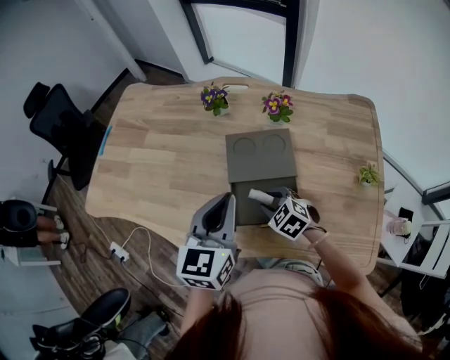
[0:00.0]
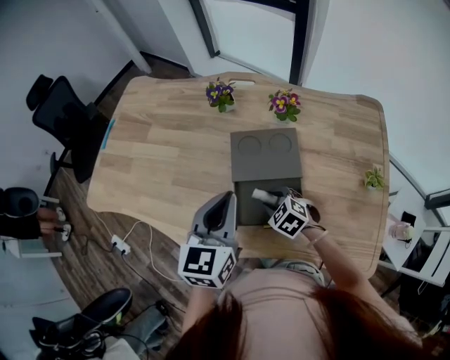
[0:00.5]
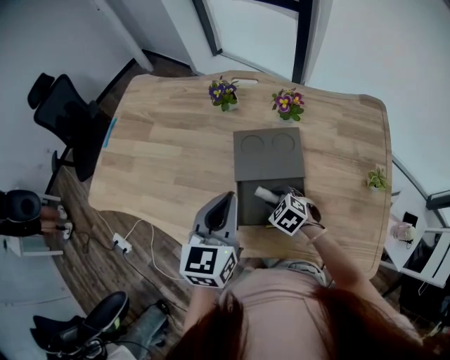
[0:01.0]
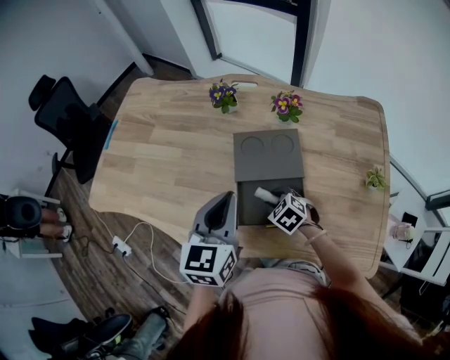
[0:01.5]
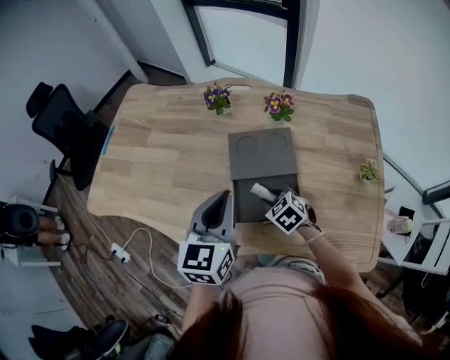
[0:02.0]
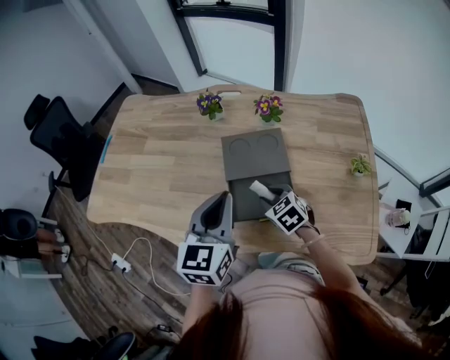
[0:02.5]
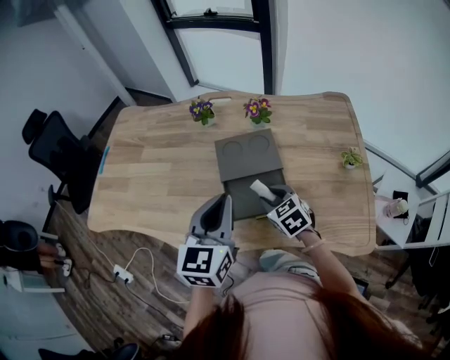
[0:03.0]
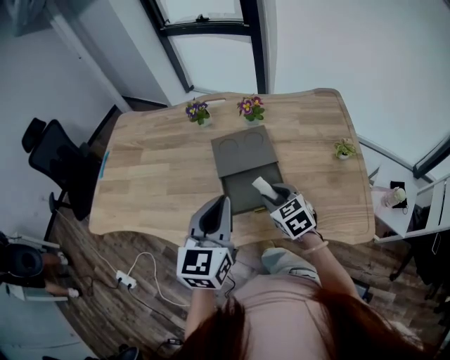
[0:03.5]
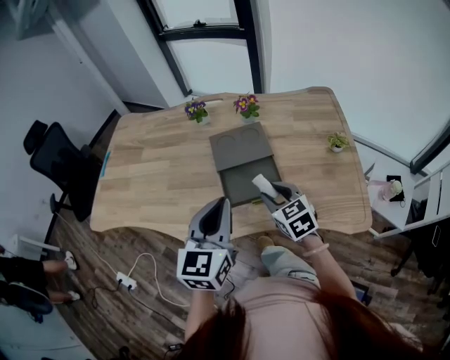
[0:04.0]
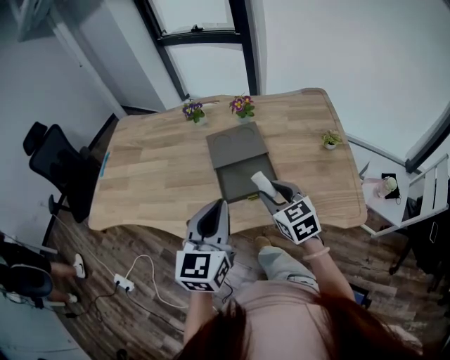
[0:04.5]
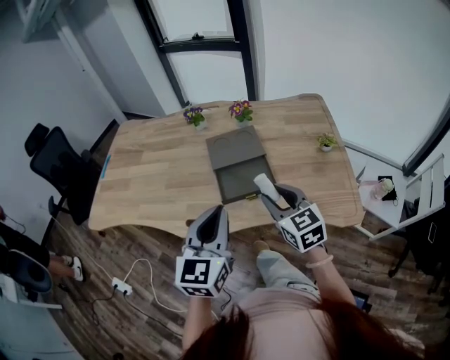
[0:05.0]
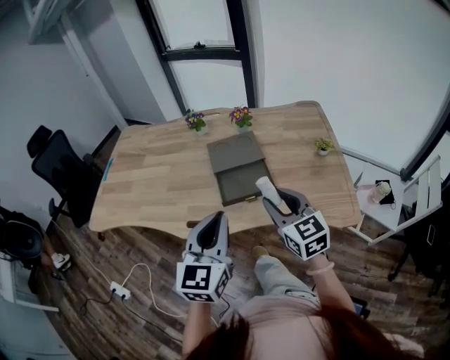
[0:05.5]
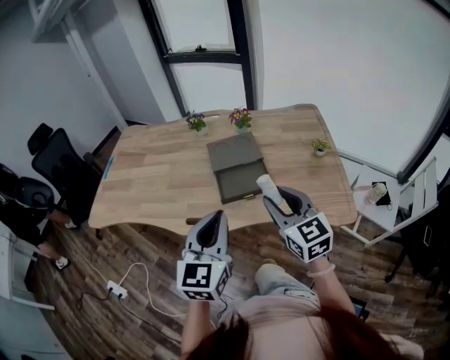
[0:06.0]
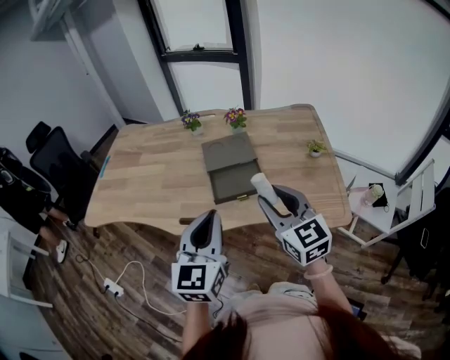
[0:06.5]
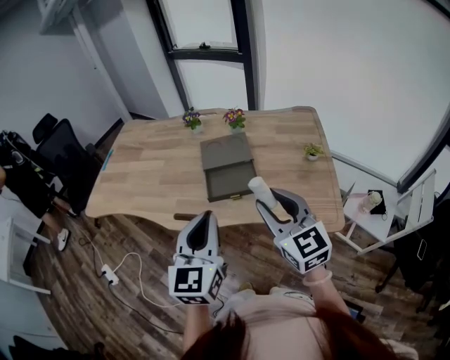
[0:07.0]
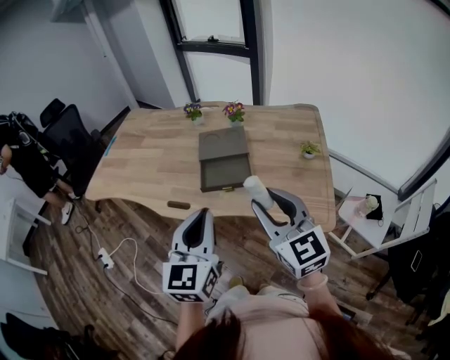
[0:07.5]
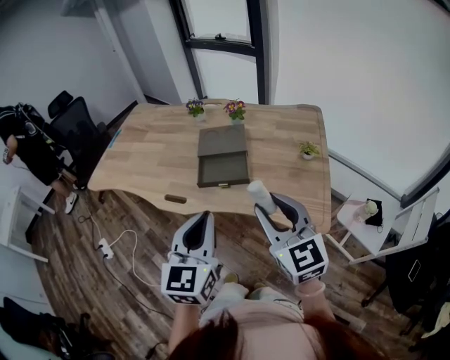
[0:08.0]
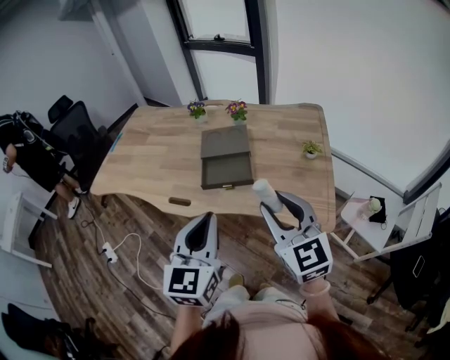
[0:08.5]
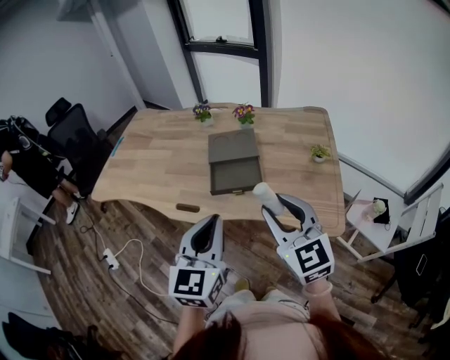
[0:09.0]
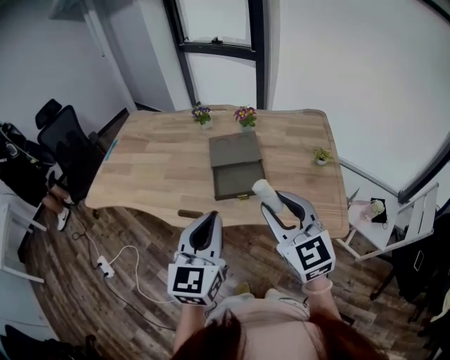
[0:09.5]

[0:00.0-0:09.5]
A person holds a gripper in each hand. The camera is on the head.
0:00.0 to 0:02.0: The grippers make only small movements.
0:02.0 to 0:04.0: The left gripper is displaced backward by about 15 cm. The right gripper travels upward and backward by roughly 15 cm, and turns by approximately 30 degrees.
0:04.0 to 0:05.5: The right gripper shifts roughly 15 cm upward and backward, while the left gripper heads backward, covering roughly 10 cm.
0:05.5 to 0:07.5: The right gripper is displaced upward, backward and to the right by about 15 cm, while the left gripper moves to the right and backward, about 10 cm.
0:07.5 to 0:09.5: Both grippers move to the left, some 5 cm.

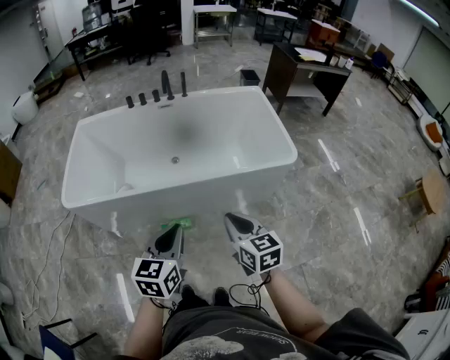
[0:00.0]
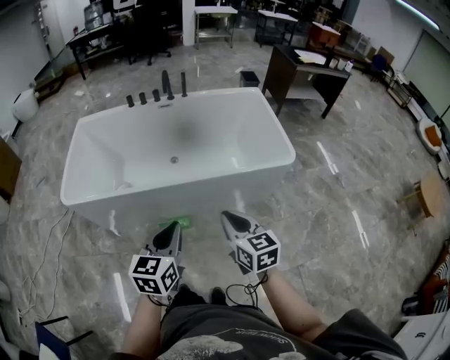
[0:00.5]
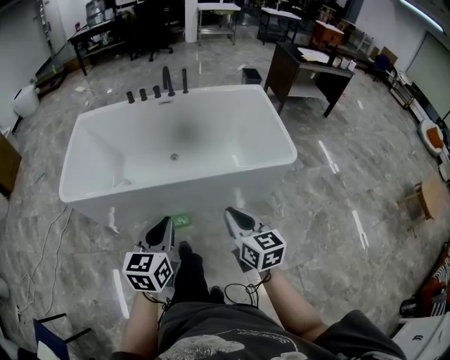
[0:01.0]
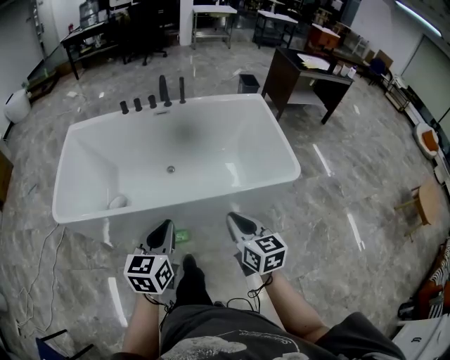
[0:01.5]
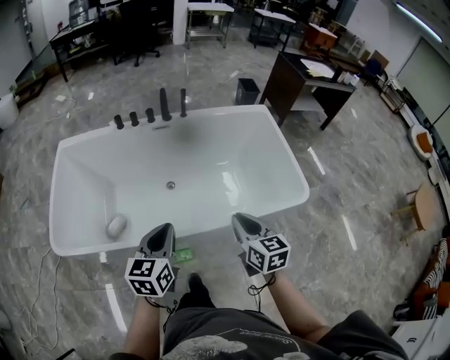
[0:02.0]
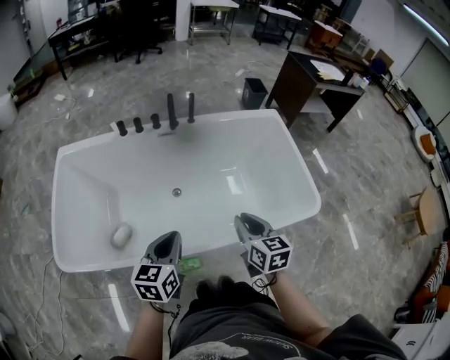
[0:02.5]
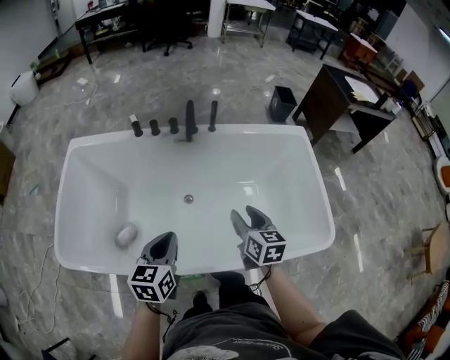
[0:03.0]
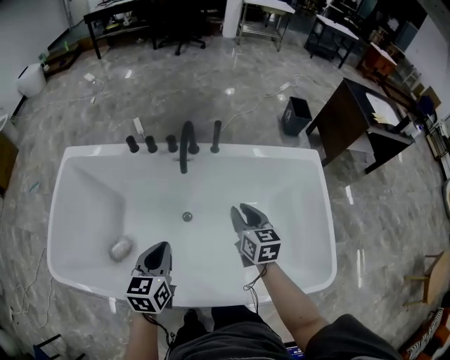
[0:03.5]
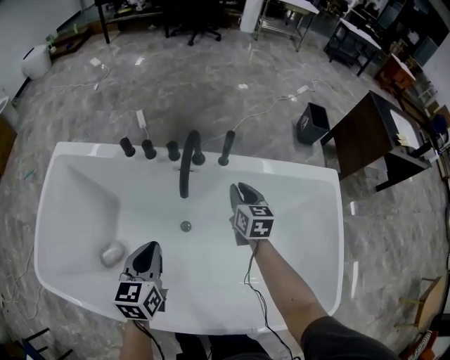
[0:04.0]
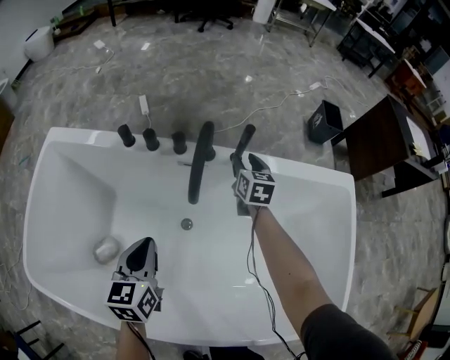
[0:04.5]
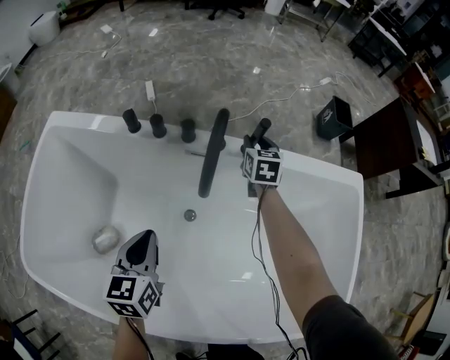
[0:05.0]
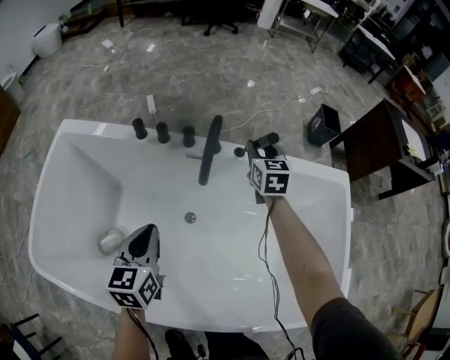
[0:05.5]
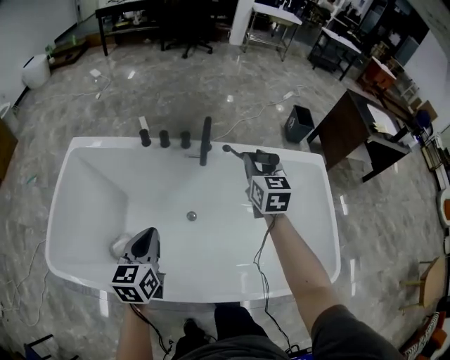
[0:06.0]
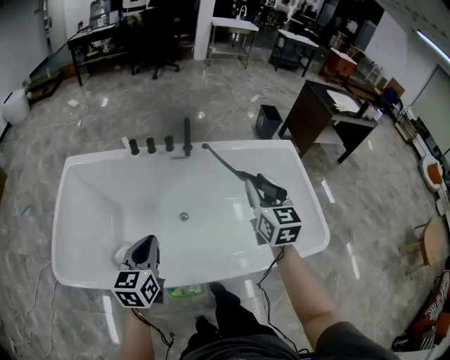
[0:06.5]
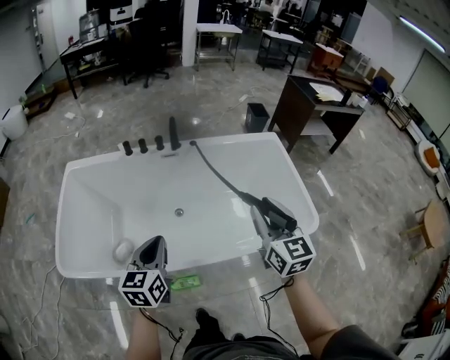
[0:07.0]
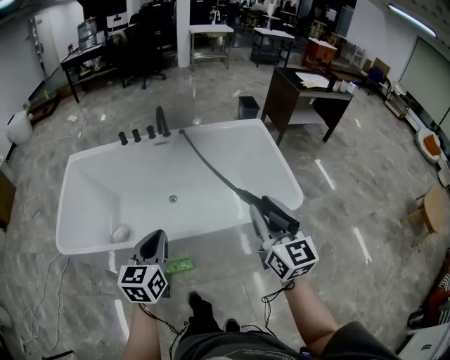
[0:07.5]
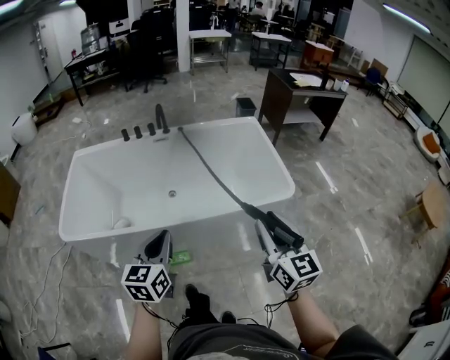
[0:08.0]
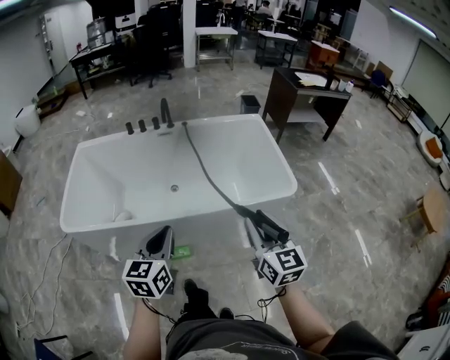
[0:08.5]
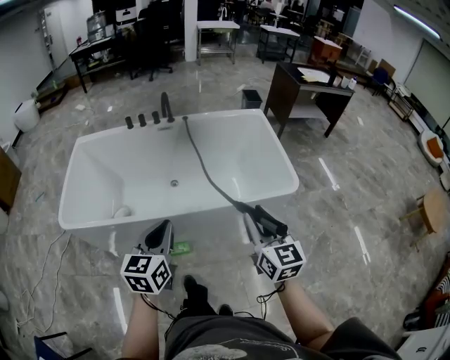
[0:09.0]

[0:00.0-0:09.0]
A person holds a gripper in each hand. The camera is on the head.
0:00.0 to 0:02.0: Both grippers travel together forward, roughly 30 cm.
0:02.0 to 0:04.5: The pair of grippers is taken forward, roughly 60 cm. The left gripper travels downward by roughly 20 cm, and changes its angle by about 30 degrees. Meanwhile the right gripper opens its fingers.
0:04.5 to 0:07.0: The right gripper heads backward and upward, covering roughly 80 cm, and changes its angle by approximately 30 degrees. Meanwhile the left gripper goes approximately 40 cm backward and upward, and changes its angle by roughly 20 degrees.
0:07.0 to 0:09.0: The right gripper travels backward by about 30 cm. Meanwhile the left gripper is displaced backward and to the right by about 30 cm.

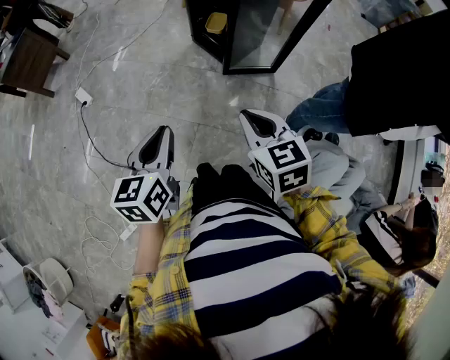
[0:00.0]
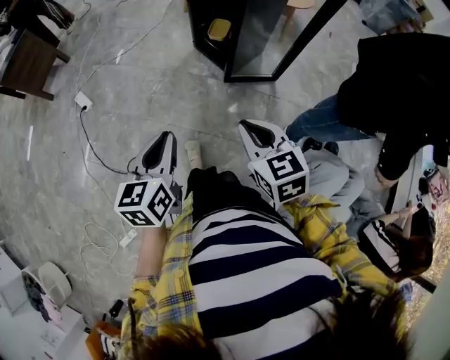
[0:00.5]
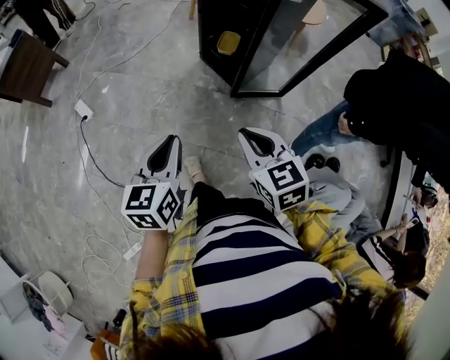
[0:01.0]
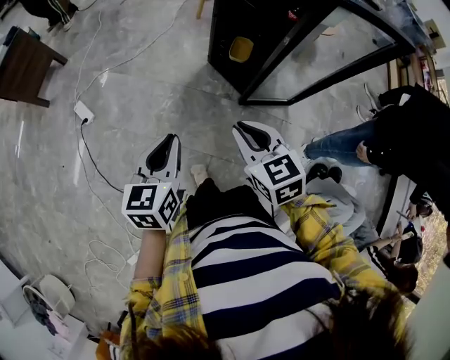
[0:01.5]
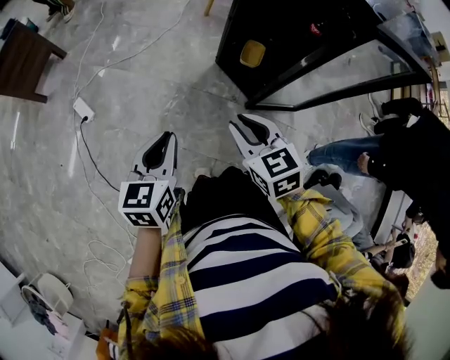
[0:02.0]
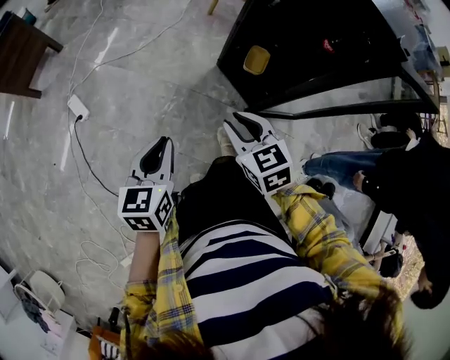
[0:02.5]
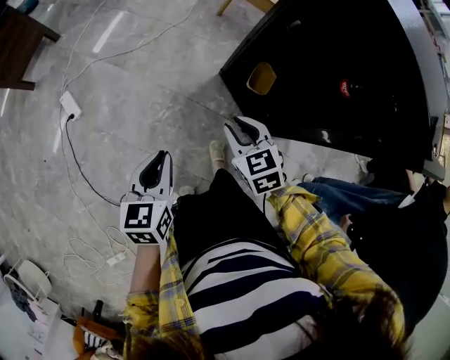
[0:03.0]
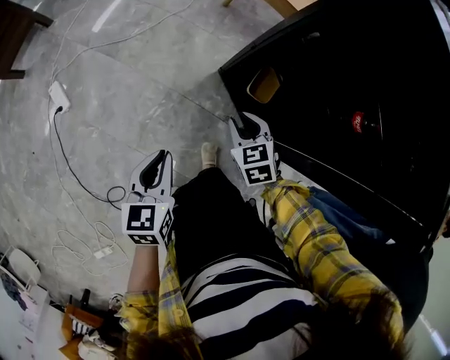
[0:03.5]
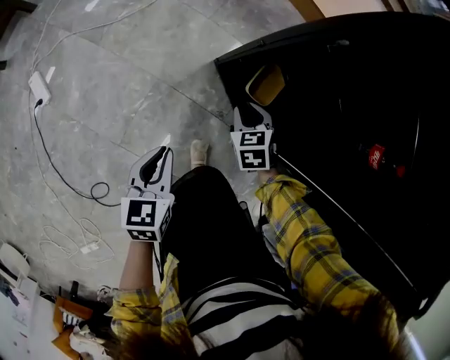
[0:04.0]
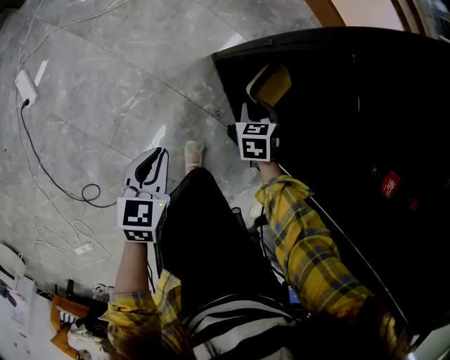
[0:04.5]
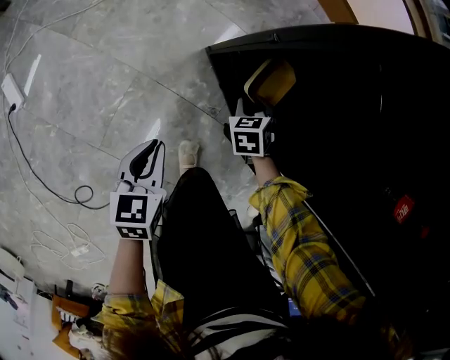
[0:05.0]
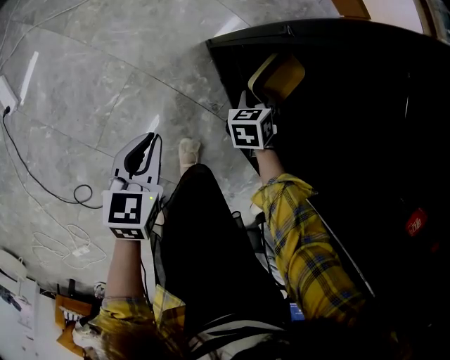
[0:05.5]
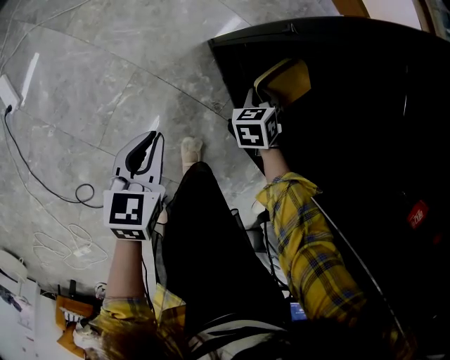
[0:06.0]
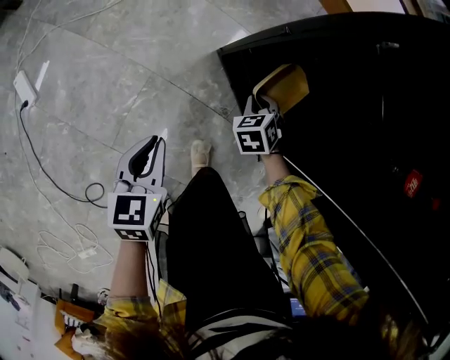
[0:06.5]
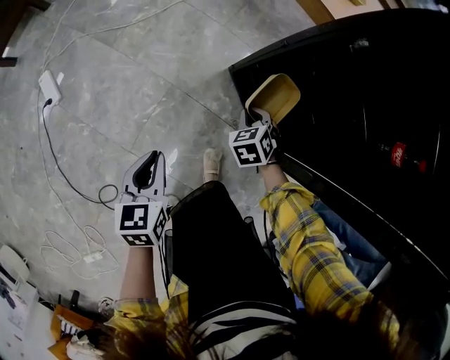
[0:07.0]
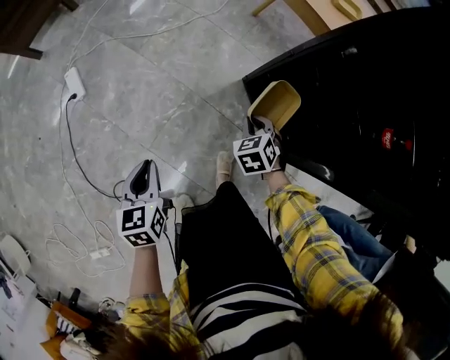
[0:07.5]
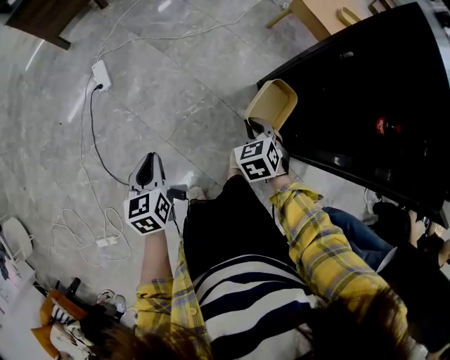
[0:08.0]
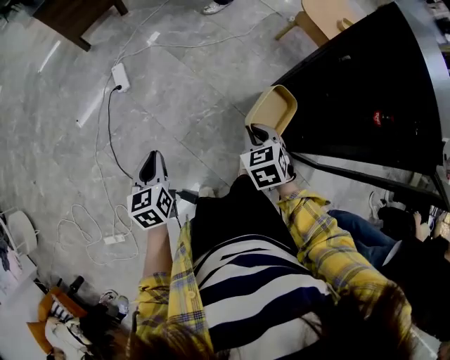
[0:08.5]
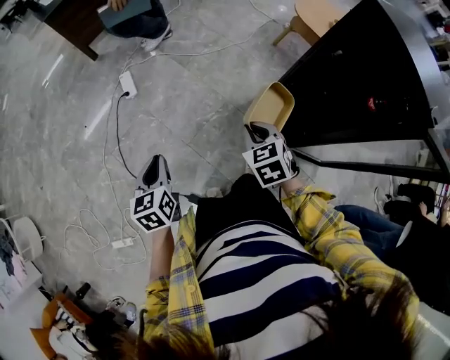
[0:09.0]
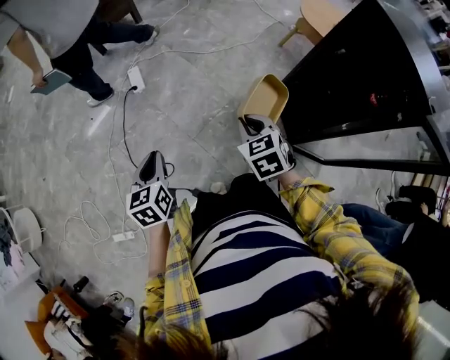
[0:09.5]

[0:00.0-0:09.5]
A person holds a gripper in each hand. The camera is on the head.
0:00.0 to 0:02.0: The two grippers go some 30 cm forward and to the left.
0:02.0 to 0:04.0: The grippers both shift downward and forward by approximately 40 cm. The right gripper changes its angle by approximately 30 degrees.
0:04.0 to 0:05.5: The left gripper moves downward and forward, approximately 15 cm. The right gripper heads downward, covering some 15 cm.
0:05.5 to 0:07.5: The left gripper shifts by approximately 30 cm, and turns by roughly 20 degrees; the right gripper is displaced upward by approximately 20 cm.
0:07.5 to 0:09.5: The left gripper is displaced to the left, upward and backward by some 25 cm; the right gripper moves upward, to the left and backward, roughly 35 cm, and turns by roughly 30 degrees.
